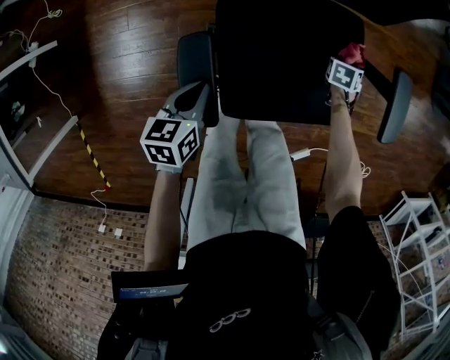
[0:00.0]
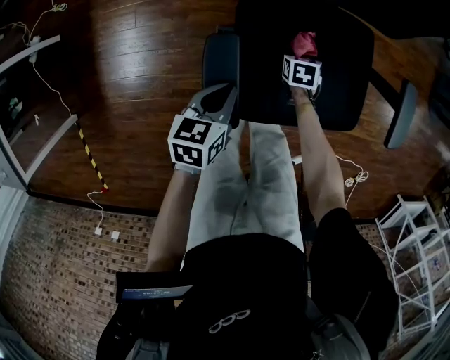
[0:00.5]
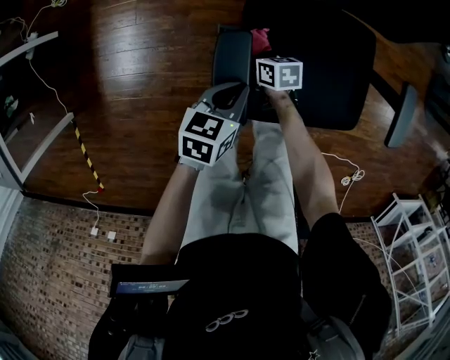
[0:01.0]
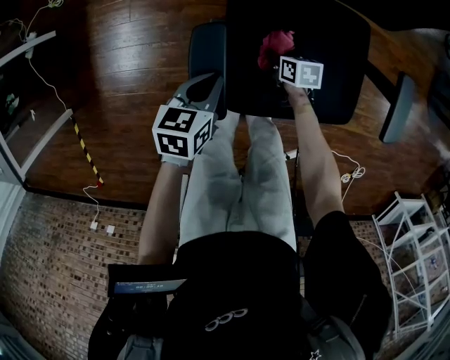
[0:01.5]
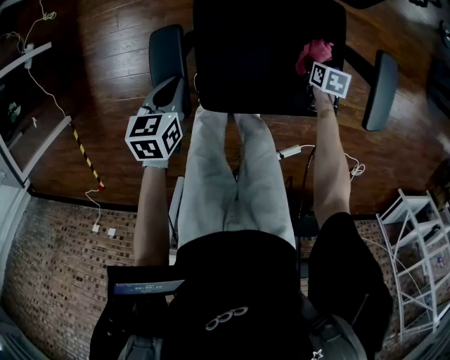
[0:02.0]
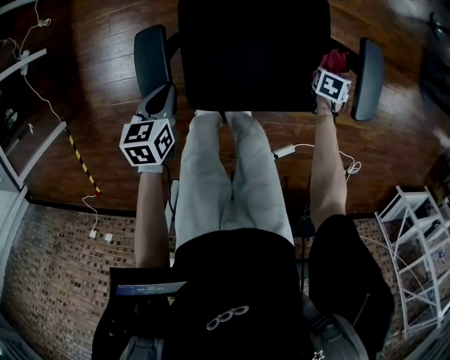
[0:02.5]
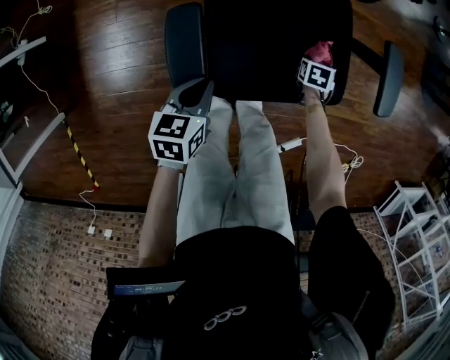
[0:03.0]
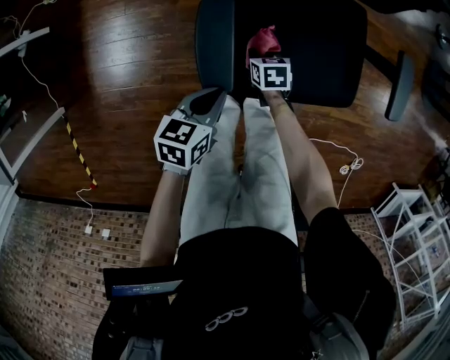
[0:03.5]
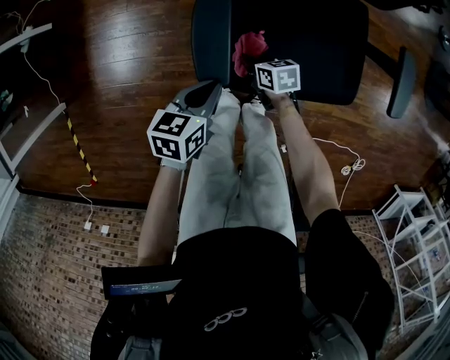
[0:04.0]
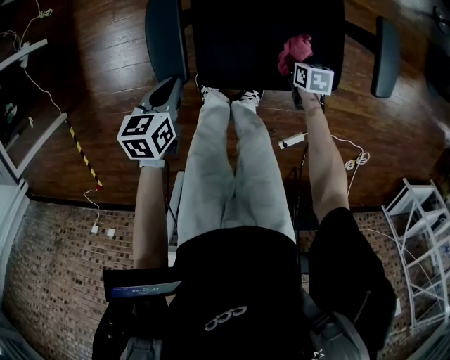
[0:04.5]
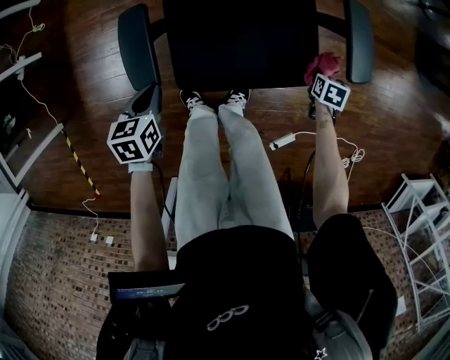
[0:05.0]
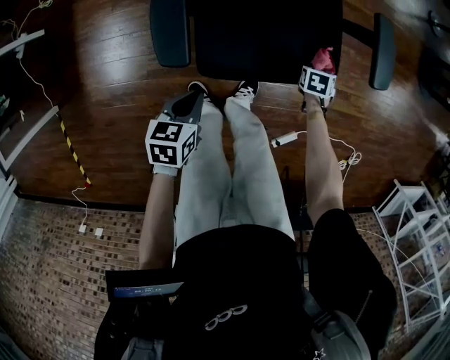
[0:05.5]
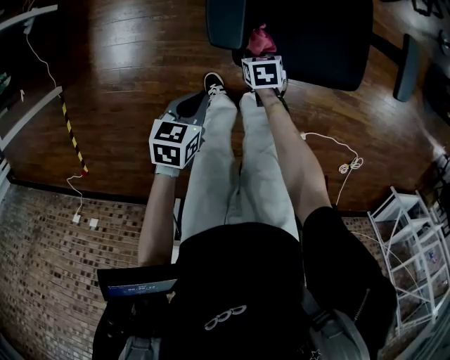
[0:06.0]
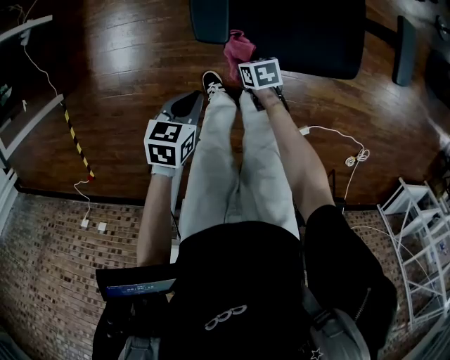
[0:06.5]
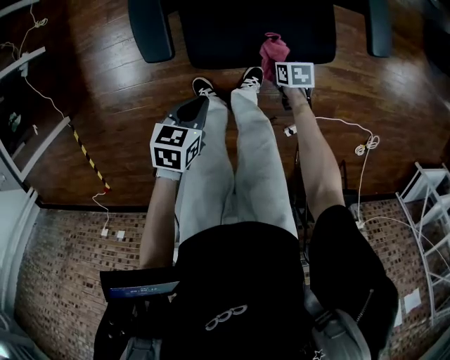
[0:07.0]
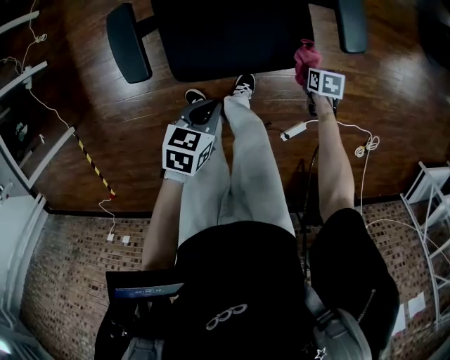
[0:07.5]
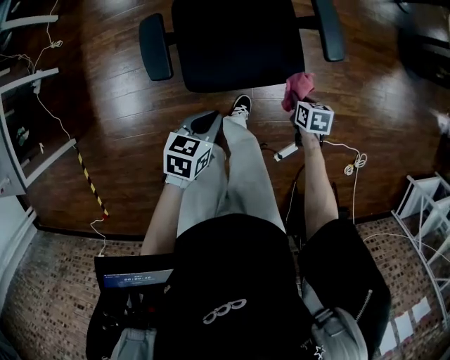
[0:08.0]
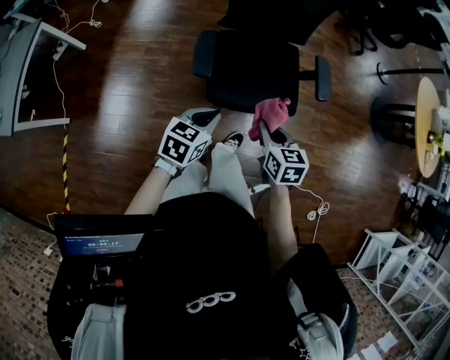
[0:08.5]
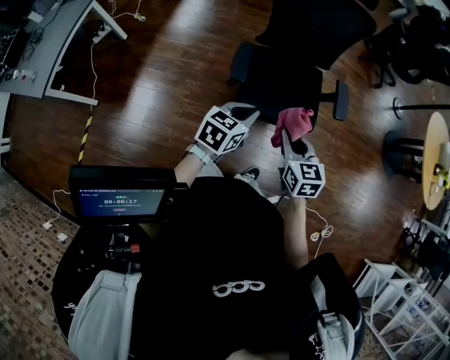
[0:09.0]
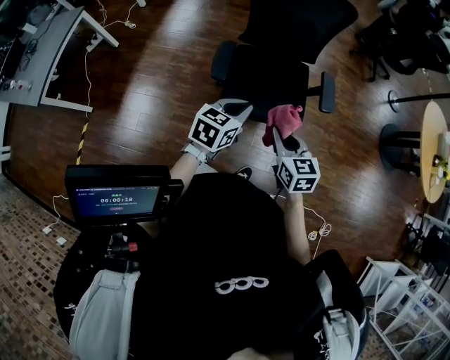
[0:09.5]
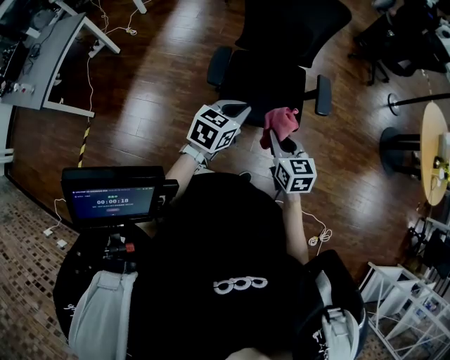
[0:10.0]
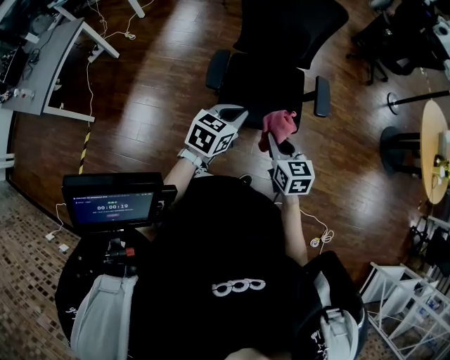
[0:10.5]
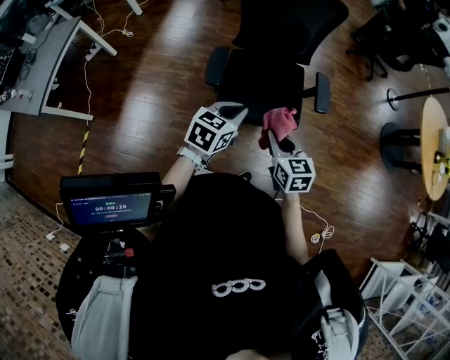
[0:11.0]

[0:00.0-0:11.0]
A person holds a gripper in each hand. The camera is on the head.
0:00.0 to 0:02.0: The right gripper rotates approximately 30 degrees.
0:02.0 to 0:03.5: The right gripper moves approximately 30 cm. The left gripper moves some 10 cm.
0:03.5 to 0:05.5: The right gripper shifts by about 30 cm, and rotates some 30 degrees. Meanwhile the left gripper ends up about 10 cm from where it was.
0:05.5 to 0:07.5: The left gripper moves roughly 15 cm; the right gripper swivels approximately 20 degrees.
0:07.5 to 0:09.0: The left gripper moves upward, some 30 cm, and rotates some 30 degrees; the right gripper heads upward, covering about 50 cm, and angles its fingers upward, by approximately 40 degrees.
0:09.0 to 0:11.0: Both grippers travel together to the right, approximately 5 cm.

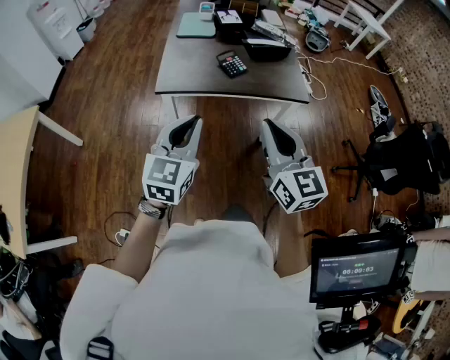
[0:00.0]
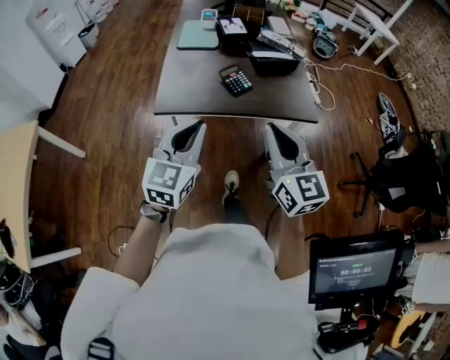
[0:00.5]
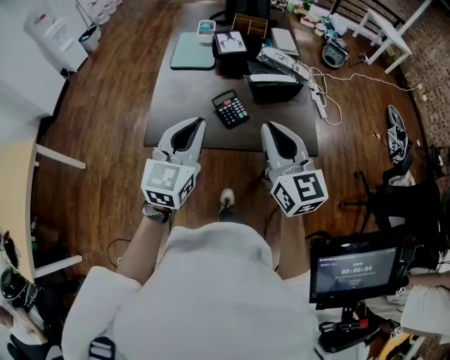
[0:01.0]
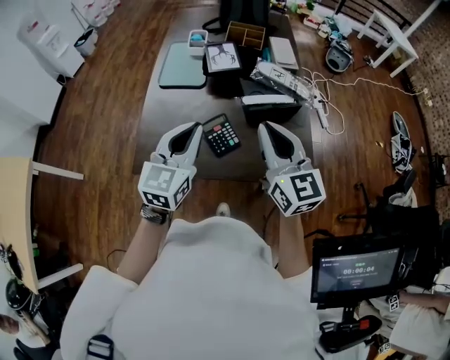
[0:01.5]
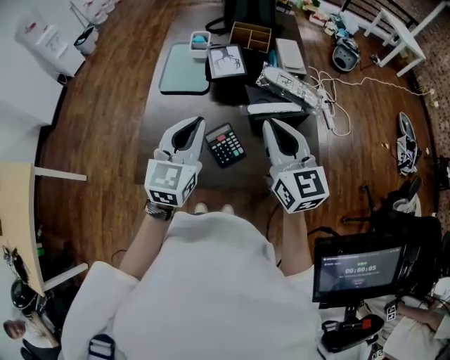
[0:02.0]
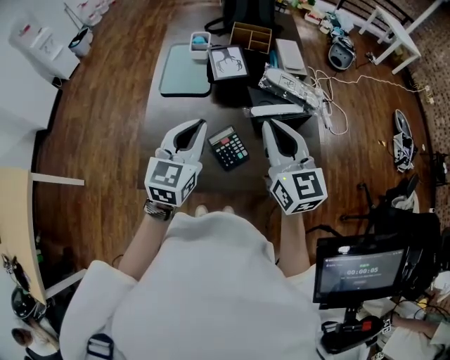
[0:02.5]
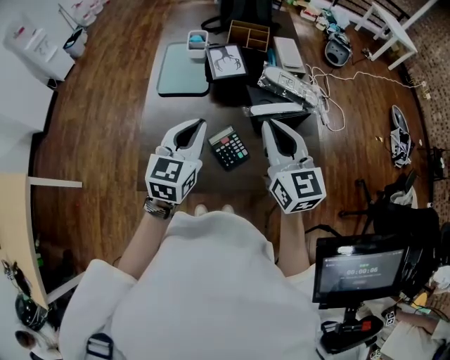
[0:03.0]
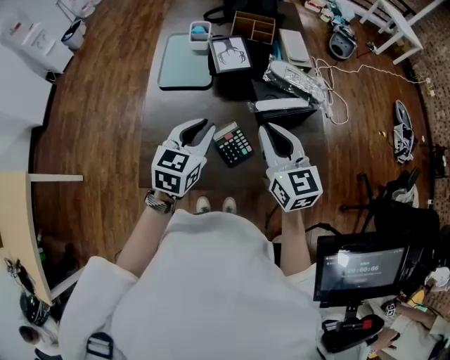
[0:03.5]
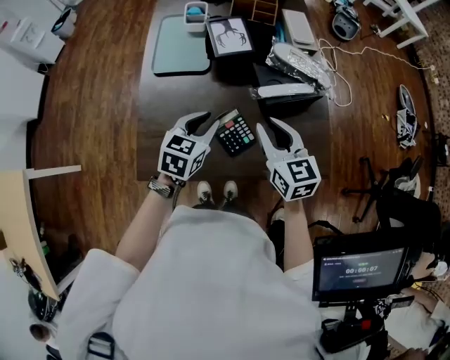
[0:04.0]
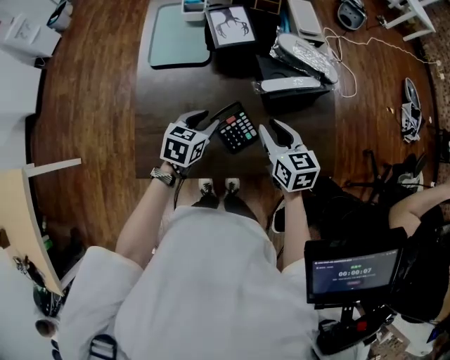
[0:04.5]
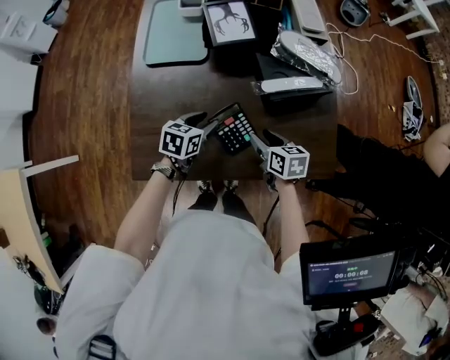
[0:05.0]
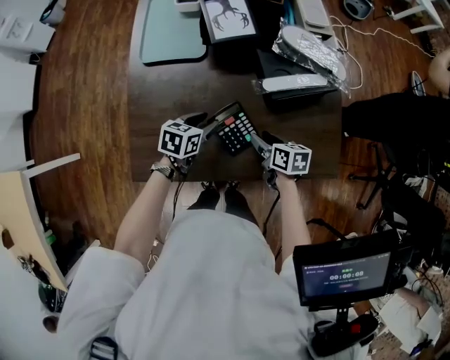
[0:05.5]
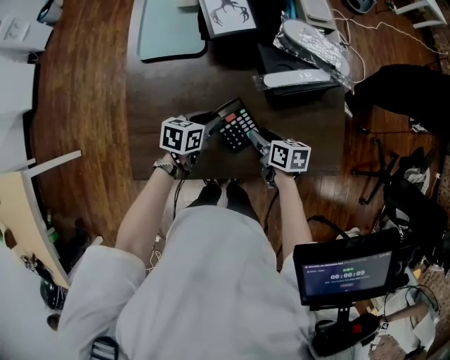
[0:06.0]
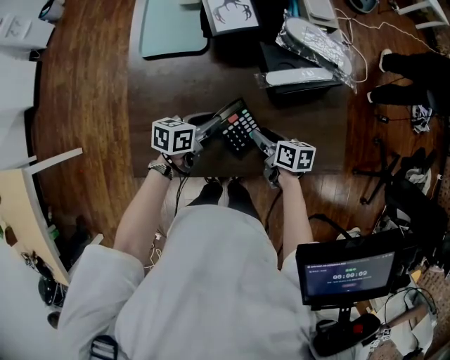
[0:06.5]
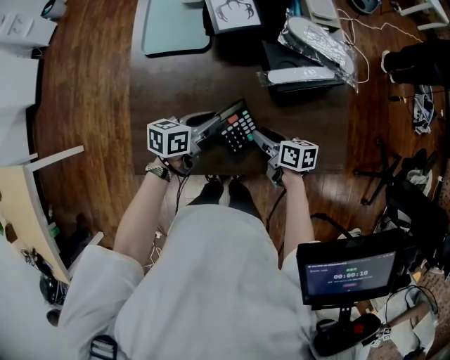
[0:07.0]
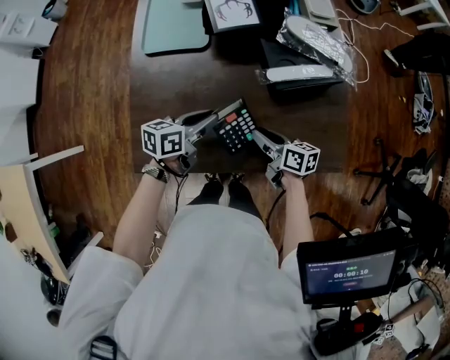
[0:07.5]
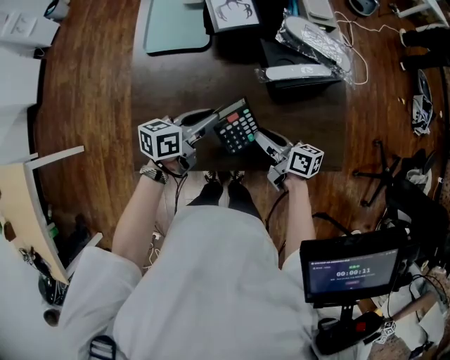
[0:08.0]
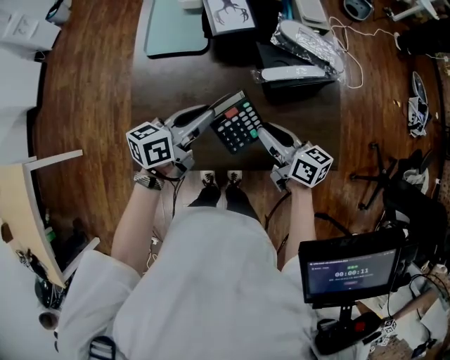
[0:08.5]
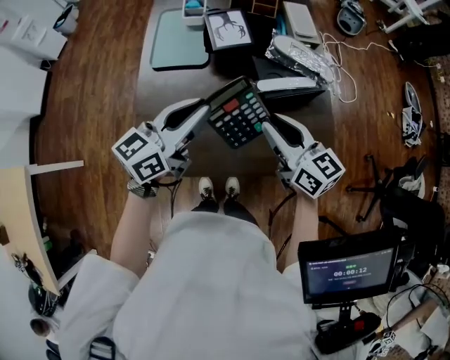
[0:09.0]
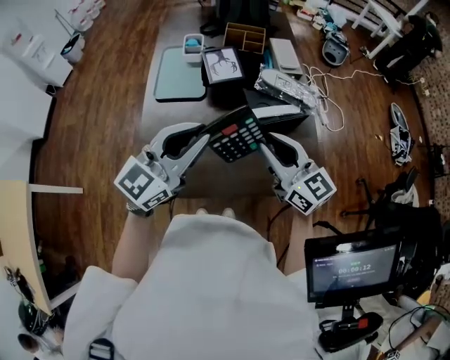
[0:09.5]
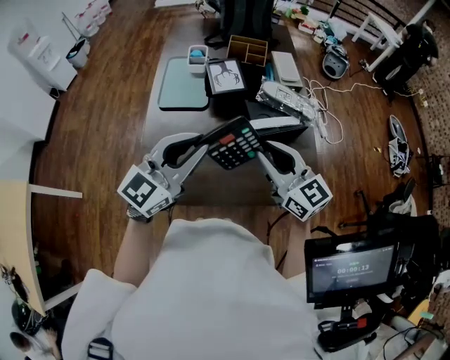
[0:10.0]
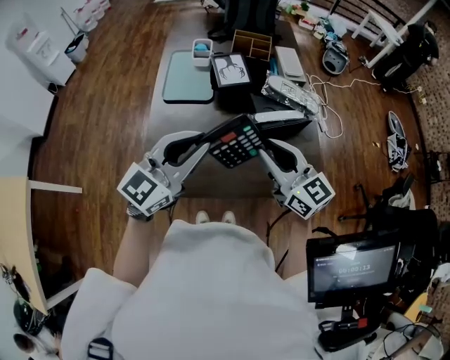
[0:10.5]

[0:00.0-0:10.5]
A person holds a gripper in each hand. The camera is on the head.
0:00.0 to 0:02.0: Both grippers are carried forward, roughly 40 cm.
0:02.0 to 0:04.0: The two grippers go some 15 cm downward. The left gripper swivels approximately 30 degrees, and opens its fingers.
0:04.0 to 0:06.5: The left gripper moves downward, some 15 cm, and rotates roughly 40 degrees, while the right gripper shifts roughly 25 cm downward, rotates around the line of its fingers by roughly 40 degrees, clockwise from behind, and opens its fingers.
0:06.5 to 0:08.5: The two grippers go about 10 cm upward. The right gripper rotates approximately 30 degrees.
0:08.5 to 0:10.5: The right gripper is displaced upward by some 20 cm, and turns by about 40 degrees. The left gripper is displaced upward and backward by some 25 cm, and twists approximately 50 degrees clockwise, seen from behind.

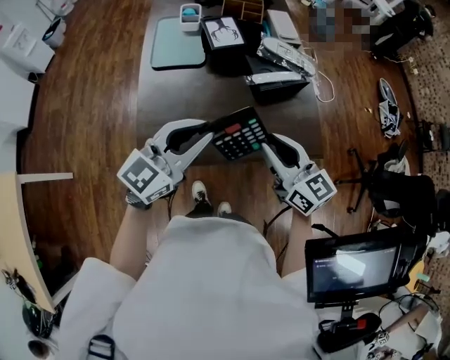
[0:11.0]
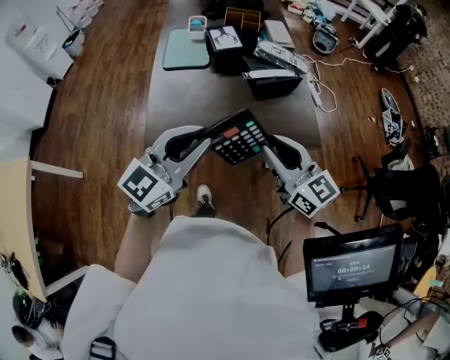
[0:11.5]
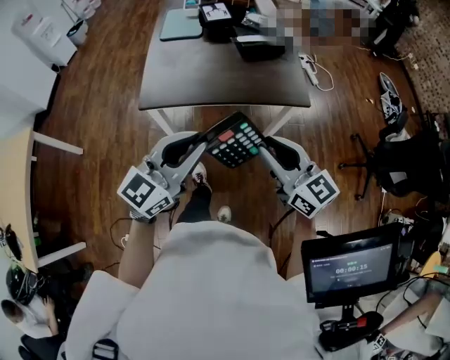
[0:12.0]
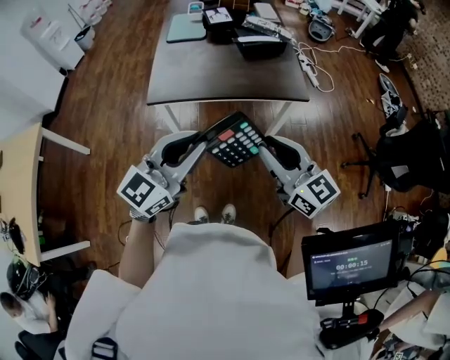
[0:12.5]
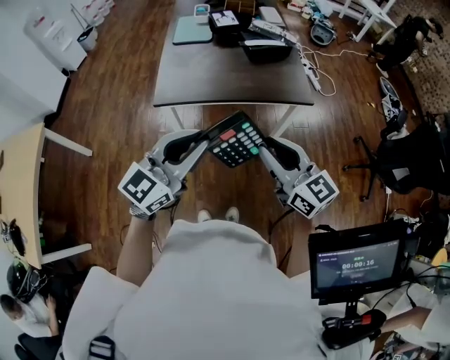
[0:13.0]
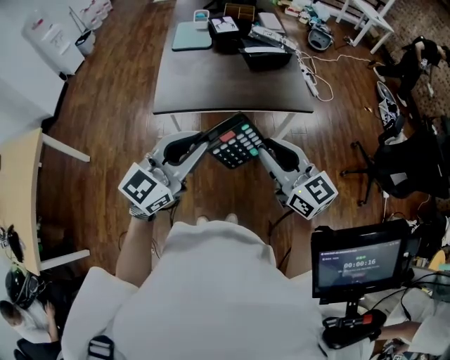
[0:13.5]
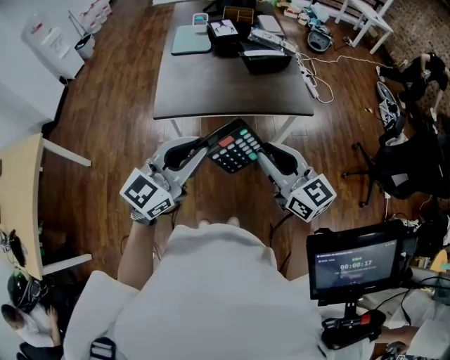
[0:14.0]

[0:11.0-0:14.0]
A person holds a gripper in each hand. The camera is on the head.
0:11.0 to 0:12.5: Both grippers move backward, about 35 cm.
0:12.5 to 0:14.0: The left gripper shifts by roughly 5 cm; the right gripper ends up some 5 cm from where it was.

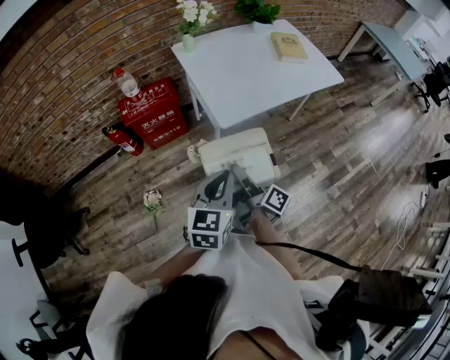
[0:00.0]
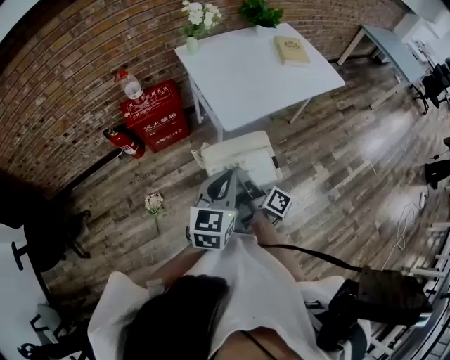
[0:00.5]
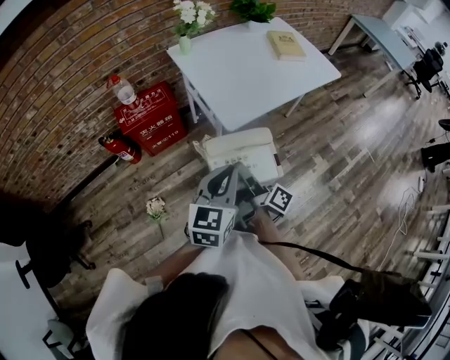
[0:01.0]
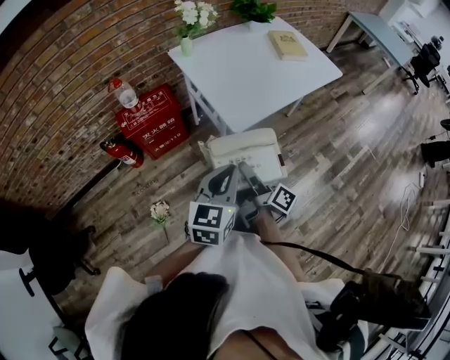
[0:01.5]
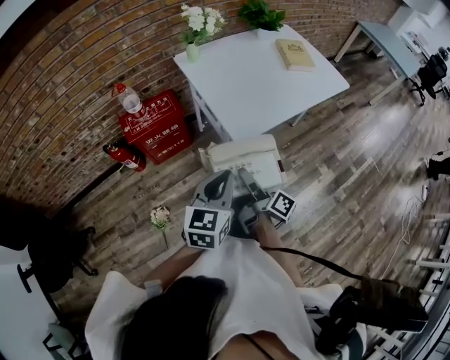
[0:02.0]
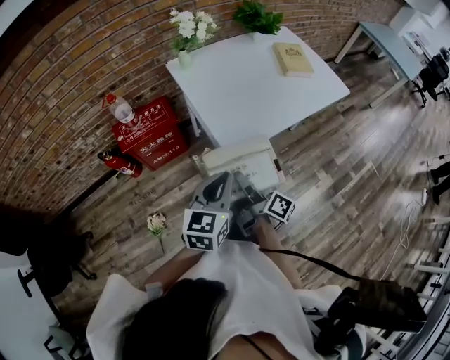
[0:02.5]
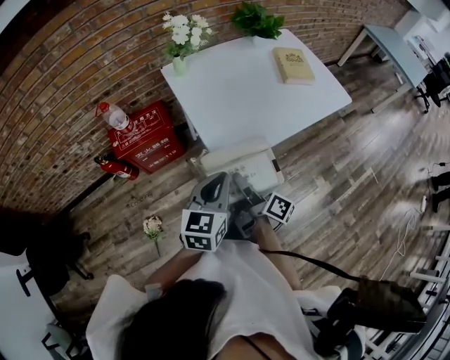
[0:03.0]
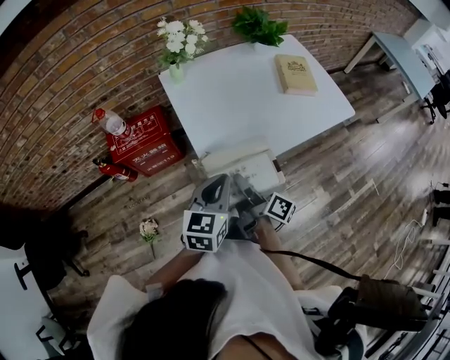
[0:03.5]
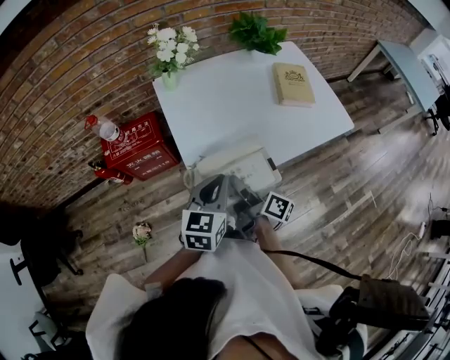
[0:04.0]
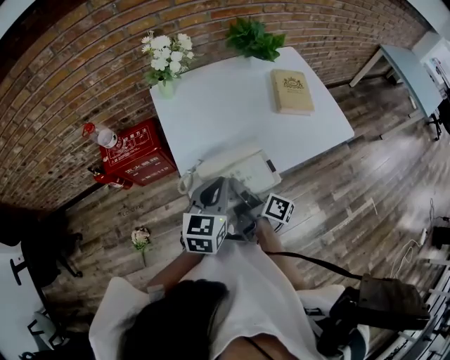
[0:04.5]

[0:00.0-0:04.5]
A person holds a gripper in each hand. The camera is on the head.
0:00.0 to 0:02.0: The left gripper shifts by roughly 10 cm.
0:02.0 to 0:04.5: The left gripper shifts by about 30 cm.
